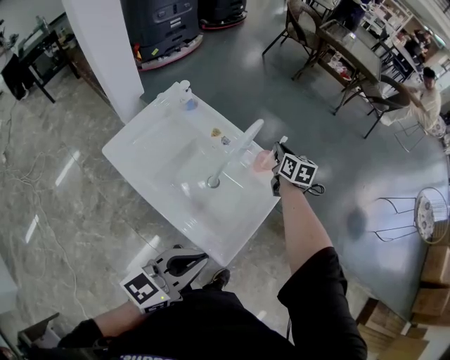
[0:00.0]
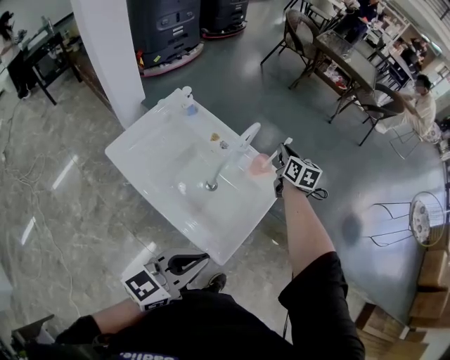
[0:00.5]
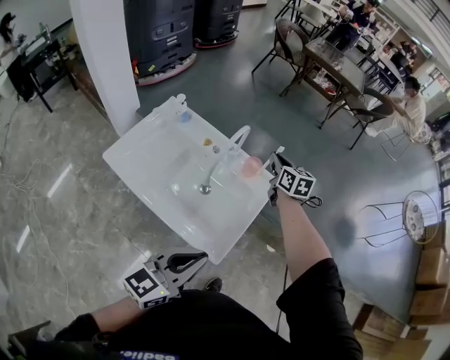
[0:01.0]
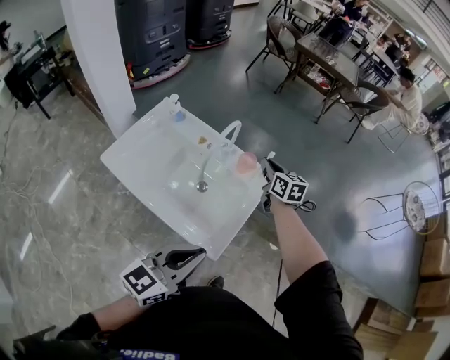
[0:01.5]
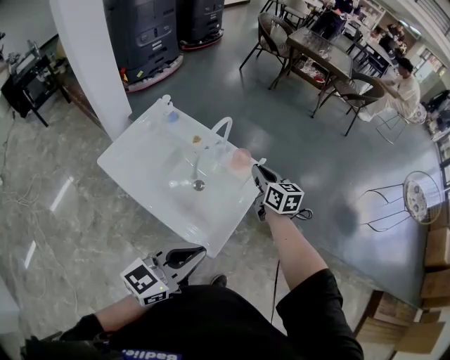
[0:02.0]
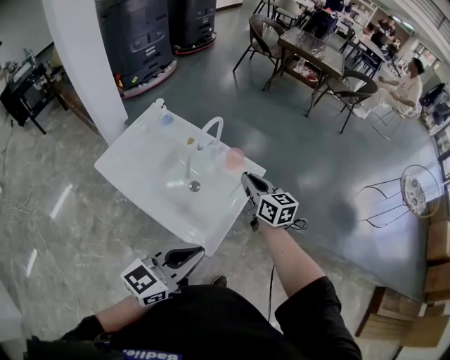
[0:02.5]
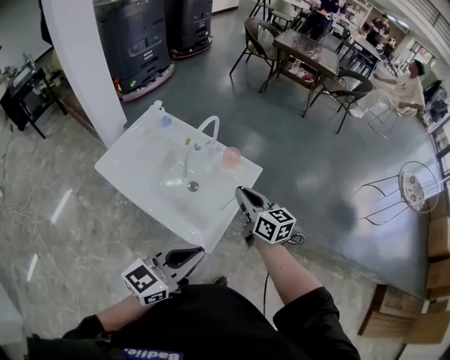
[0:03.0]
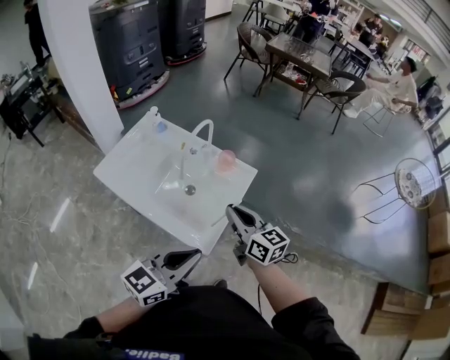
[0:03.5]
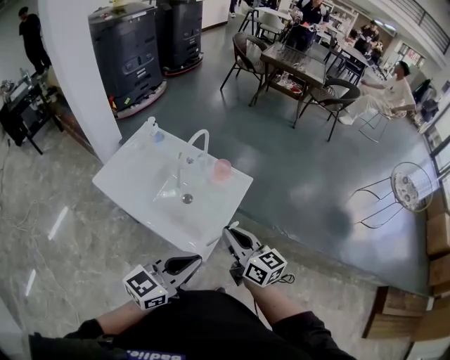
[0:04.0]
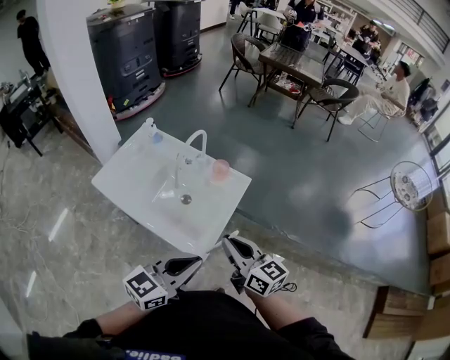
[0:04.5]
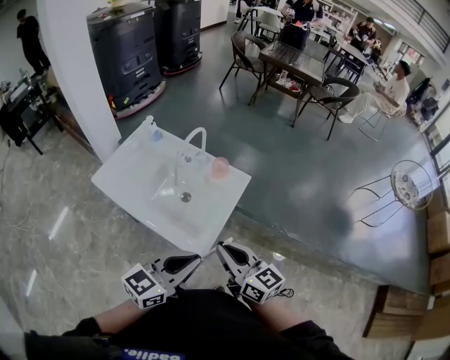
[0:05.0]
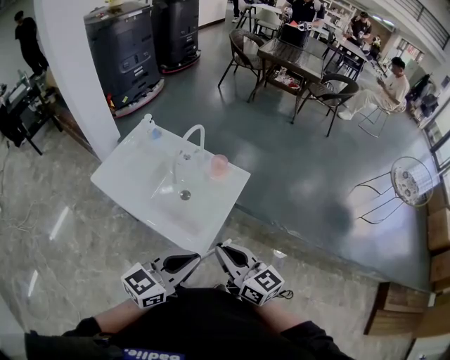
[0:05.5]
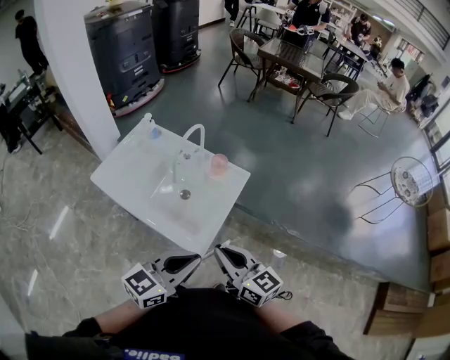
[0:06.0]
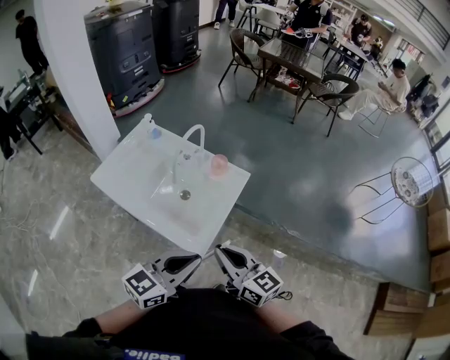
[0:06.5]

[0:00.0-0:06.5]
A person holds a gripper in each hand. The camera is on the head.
0:00.0 to 0:02.0: The left gripper changes place by about 5 cm; the right gripper shifts some 15 cm backward and upward.
0:02.0 to 0:04.5: The left gripper moves roughly 5 cm, while the right gripper travels backward by roughly 25 cm.
0:04.5 to 0:06.5: The grippers move only a little.

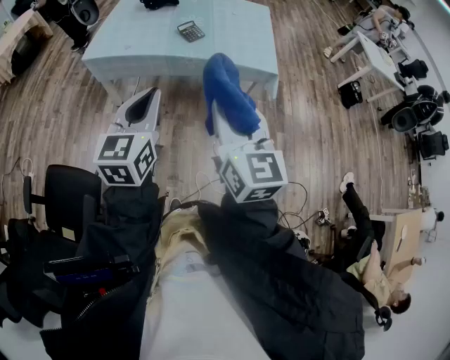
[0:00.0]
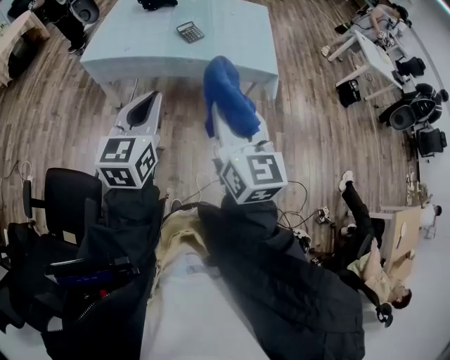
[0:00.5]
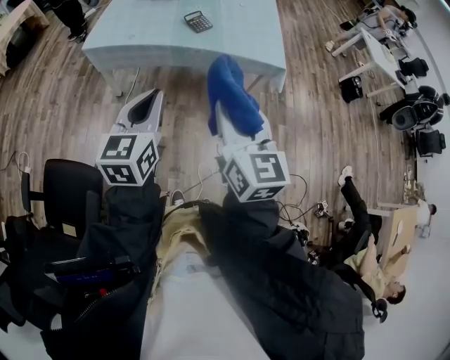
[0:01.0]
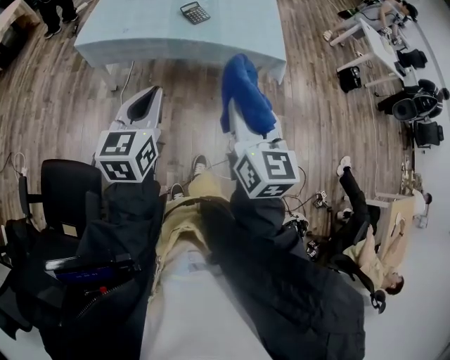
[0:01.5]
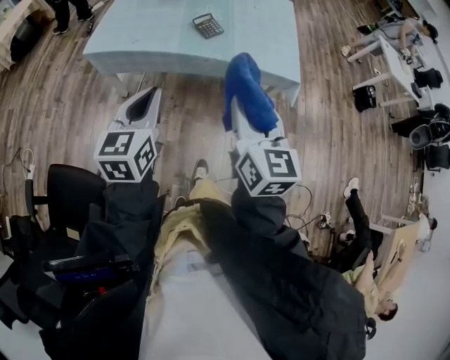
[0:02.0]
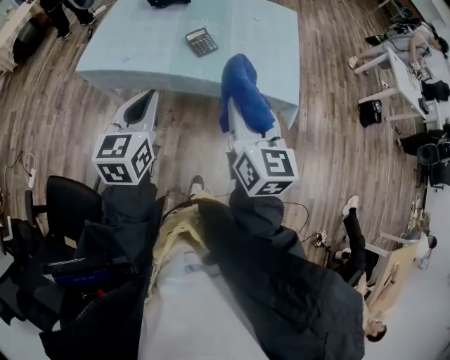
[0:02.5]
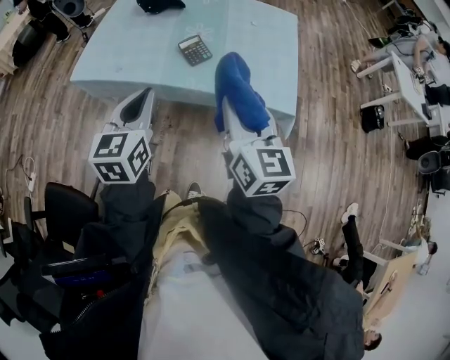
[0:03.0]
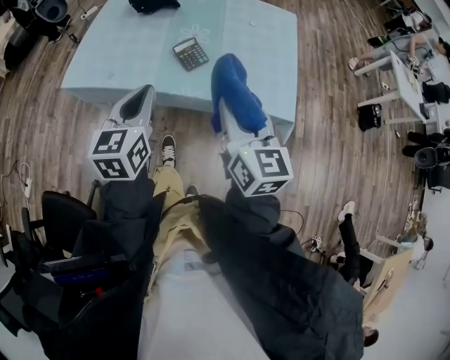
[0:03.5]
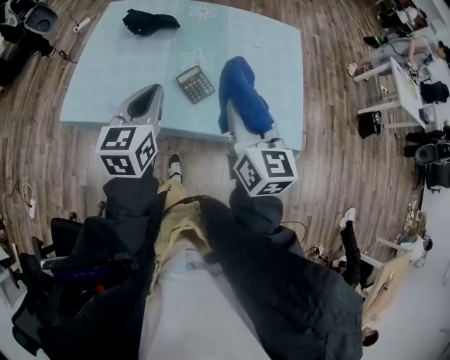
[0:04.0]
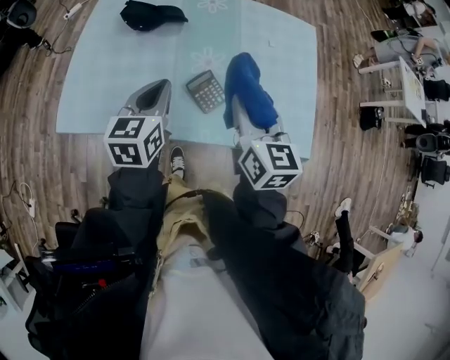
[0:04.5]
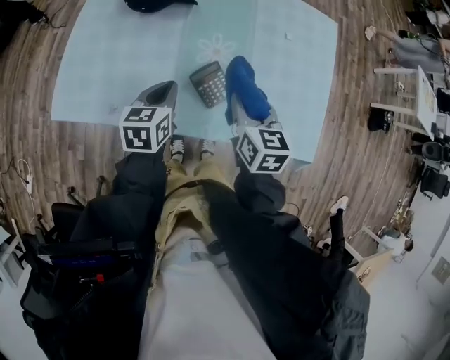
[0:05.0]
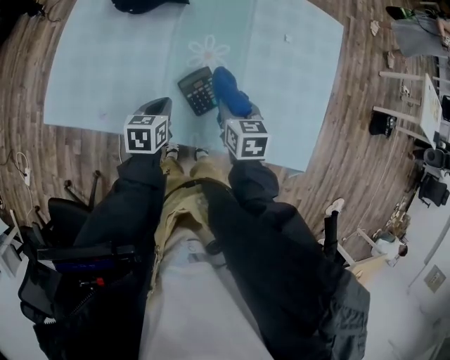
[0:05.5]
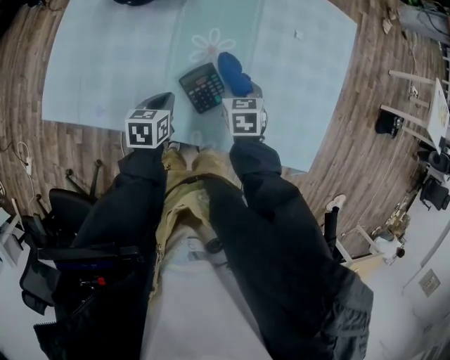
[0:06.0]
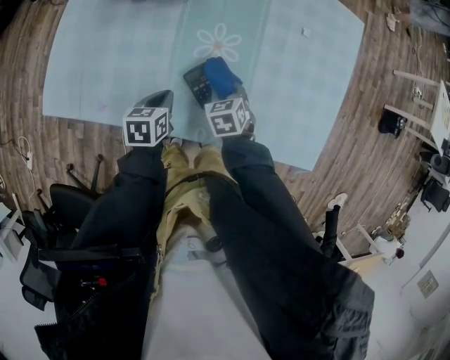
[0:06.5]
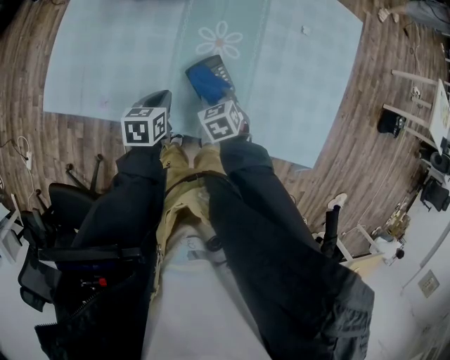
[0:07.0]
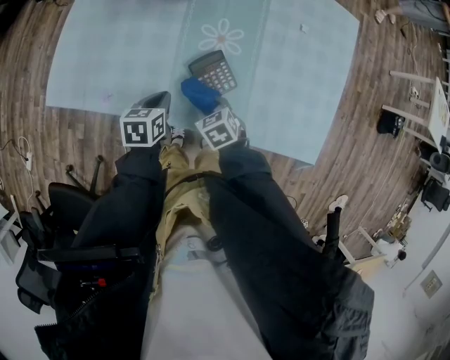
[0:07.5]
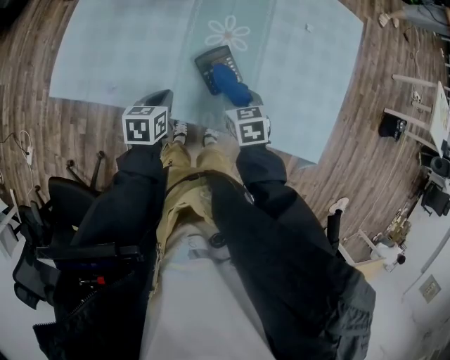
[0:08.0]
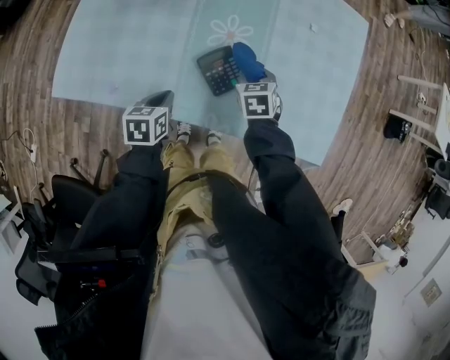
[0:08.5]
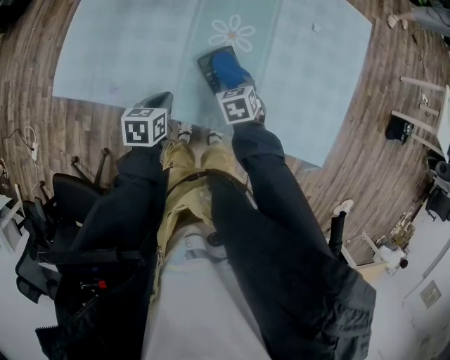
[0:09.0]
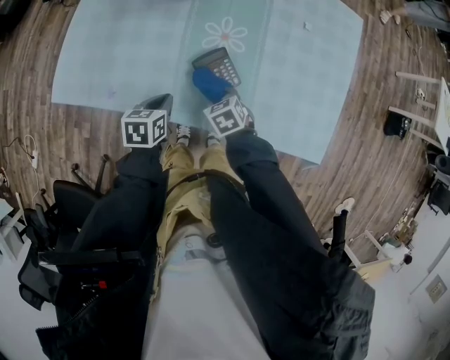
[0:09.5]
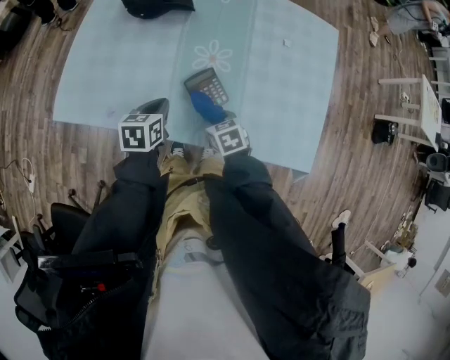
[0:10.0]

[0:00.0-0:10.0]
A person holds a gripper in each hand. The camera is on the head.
0:00.0 to 0:02.0: The right gripper goes approximately 15 cm forward and downward. Meanwhile the left gripper travels forward, downward and to the left by approximately 15 cm.
0:02.0 to 0:04.0: Both grippers travel together forward, roughly 35 cm.
0:04.0 to 0:06.0: The two grippers go roughly 35 cm downward and forward. The right gripper points its fingers roughly 50 degrees further downward. The left gripper tips its fingers downward by approximately 40 degrees.
0:06.0 to 0:08.0: The left gripper travels backward by approximately 5 cm. Meanwhile the right gripper heads backward, covering approximately 10 cm.
0:08.0 to 0:10.0: The left gripper changes place by some 5 cm. The right gripper reaches approximately 10 cm forward, then returns.

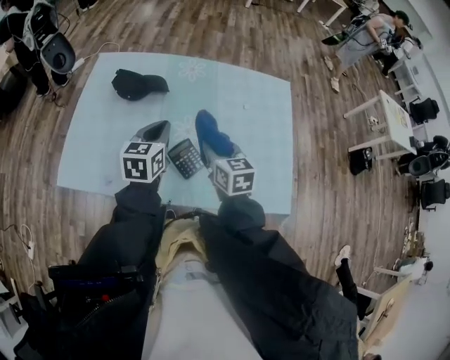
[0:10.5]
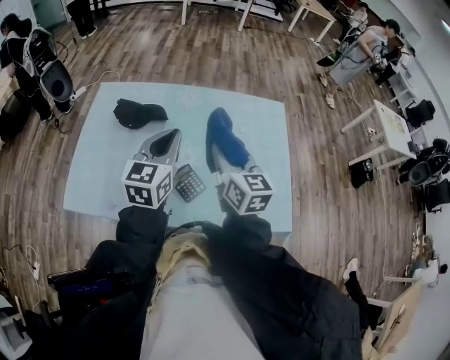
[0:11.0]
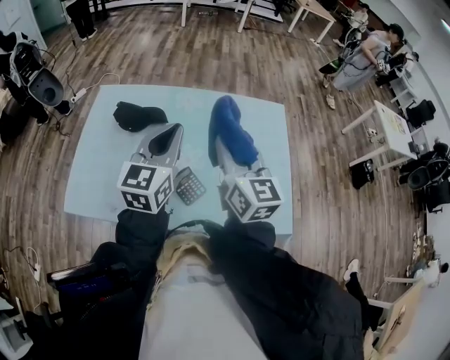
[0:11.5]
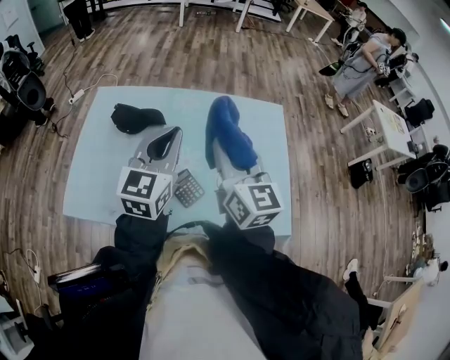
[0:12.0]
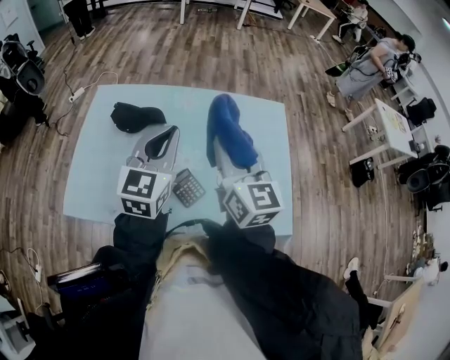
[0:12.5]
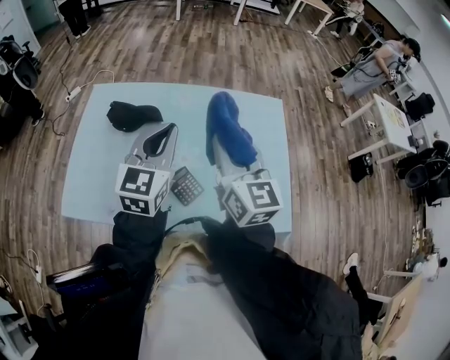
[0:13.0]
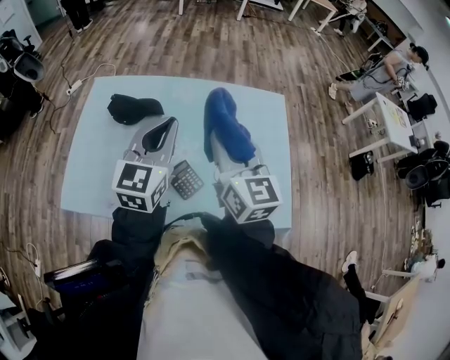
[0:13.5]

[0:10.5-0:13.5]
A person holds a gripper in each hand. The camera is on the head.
0:10.5 to 0:12.0: Both grippers travel together upward, about 20 cm. The right gripper turns by some 30 degrees, while the left gripper swivels approximately 30 degrees.
0:12.0 to 0:13.5: Both grippers stay about where they are.

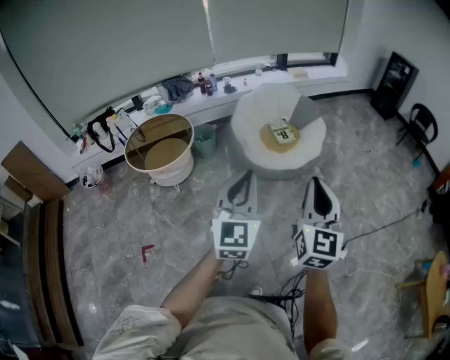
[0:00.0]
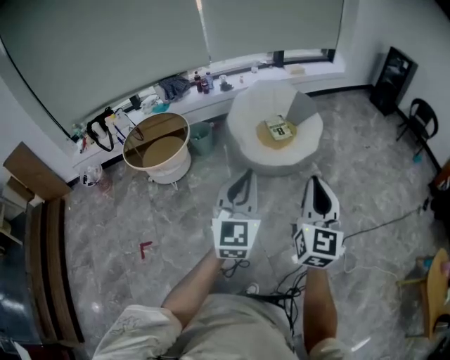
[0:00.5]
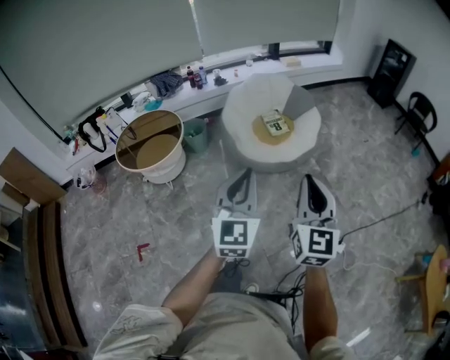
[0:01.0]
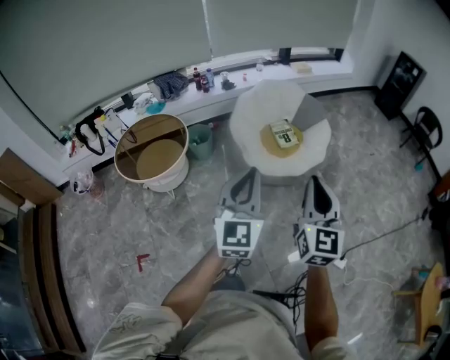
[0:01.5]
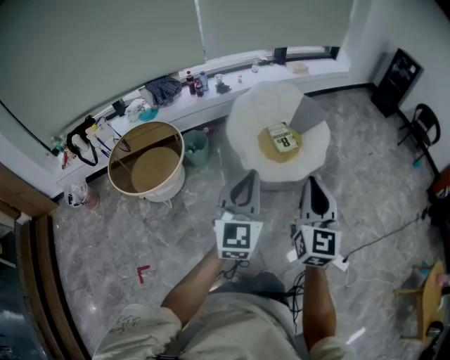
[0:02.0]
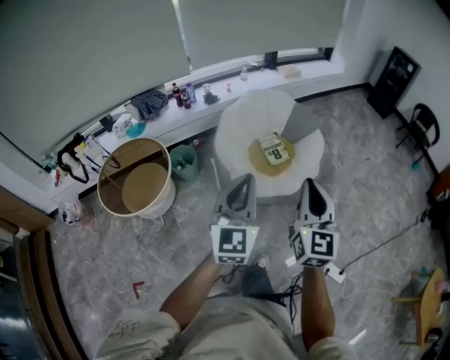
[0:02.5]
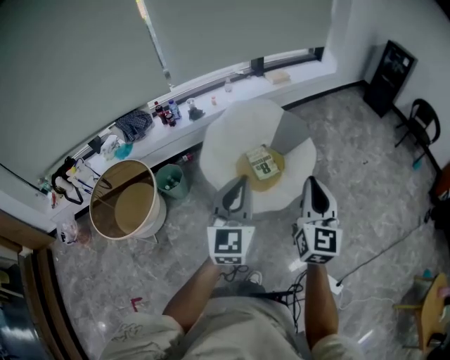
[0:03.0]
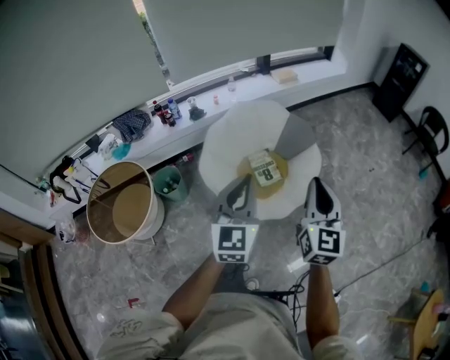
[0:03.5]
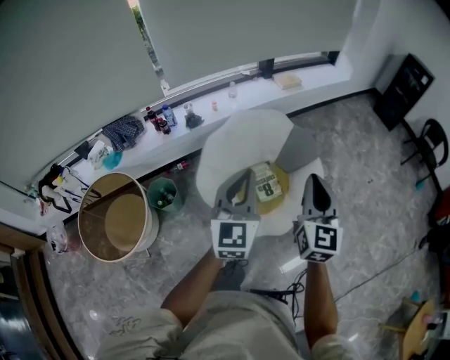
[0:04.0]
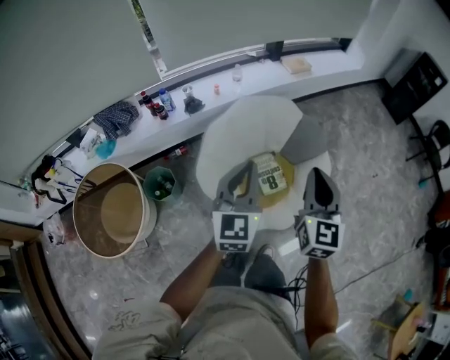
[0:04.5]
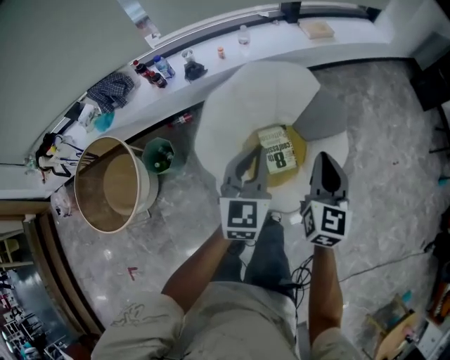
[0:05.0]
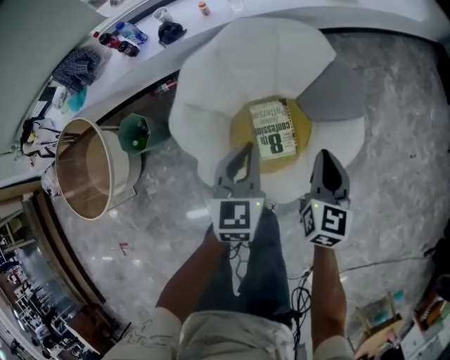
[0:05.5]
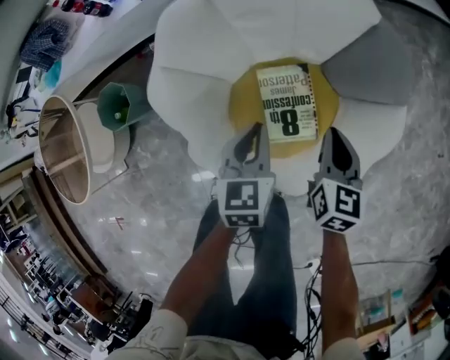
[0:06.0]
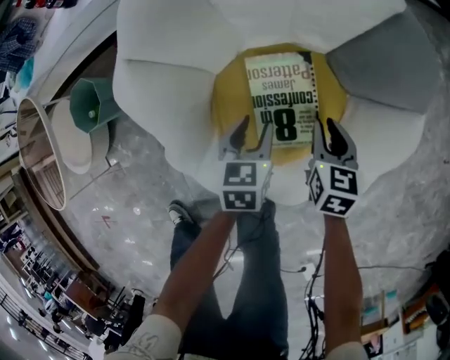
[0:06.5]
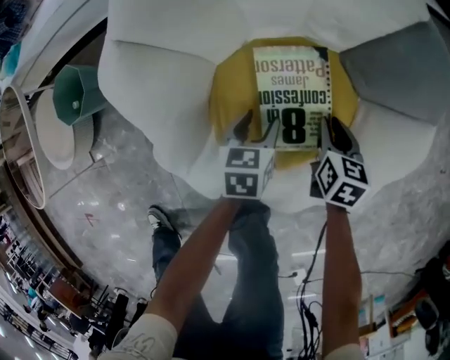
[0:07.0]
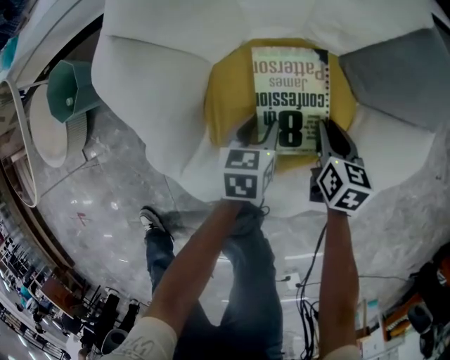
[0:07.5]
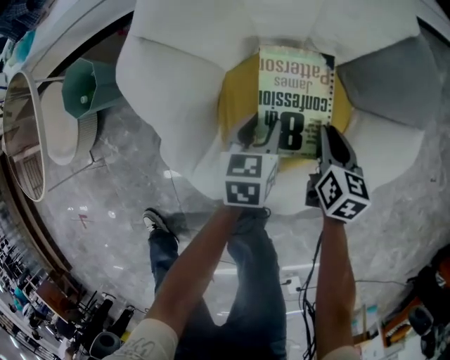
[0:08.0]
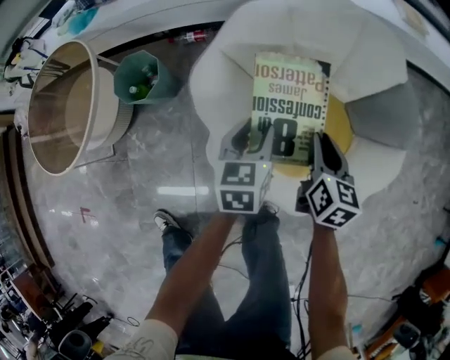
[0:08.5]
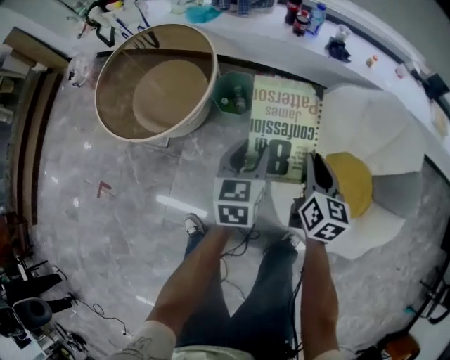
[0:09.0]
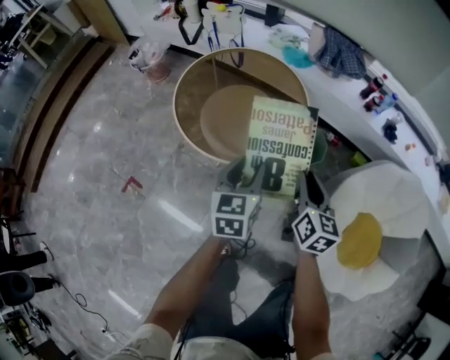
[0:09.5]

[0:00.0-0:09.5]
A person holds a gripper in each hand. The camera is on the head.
0:00.0 to 0:02.0: The grippers both shift forward by roughly 25 cm.
0:02.0 to 0:04.0: The two grippers travel together, forward, roughly 50 cm.
0:04.0 to 0:05.5: Both grippers move downward and forward, some 40 cm. The left gripper turns by some 30 degrees; the right gripper swivels approximately 30 degrees.
0:05.5 to 0:07.5: The grippers both shift downward by roughly 50 cm. The left gripper swivels about 30 degrees, and opens. Meanwhile the right gripper changes its angle by about 30 degrees.
0:07.5 to 0:09.5: Both grippers are carried approximately 80 cm. The right gripper turns by approximately 40 degrees. The left gripper changes its angle by roughly 50 degrees.
